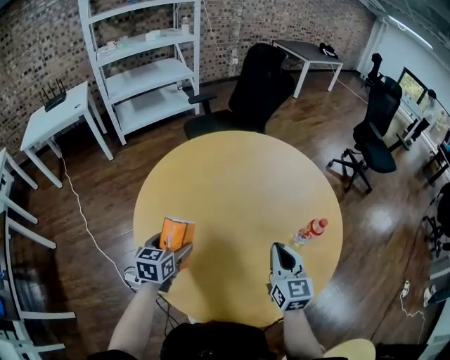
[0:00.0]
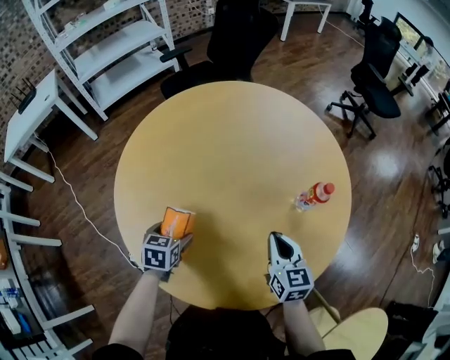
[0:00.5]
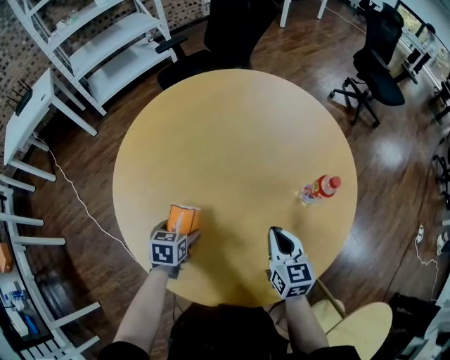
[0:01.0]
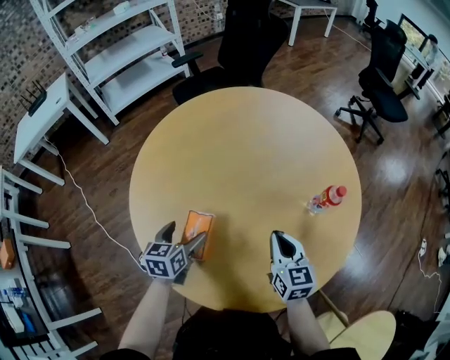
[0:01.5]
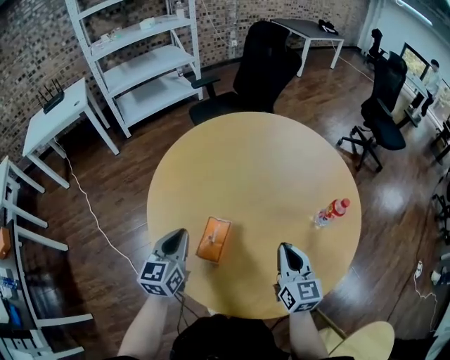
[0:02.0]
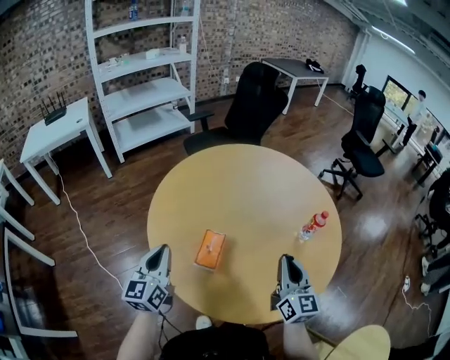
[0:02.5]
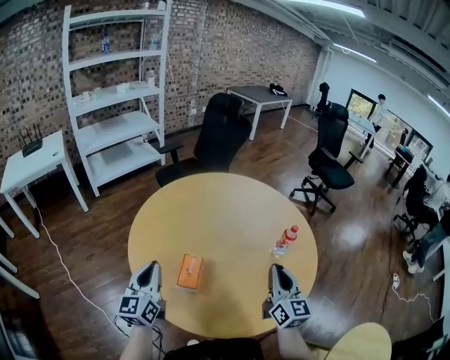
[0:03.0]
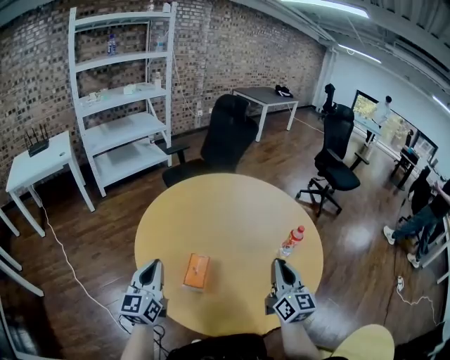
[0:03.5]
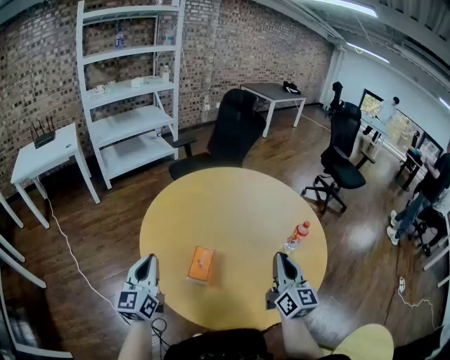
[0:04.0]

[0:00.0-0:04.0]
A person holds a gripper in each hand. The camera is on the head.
0:00.0 to 0:02.0: The left gripper goes downward and returns, about 15 cm each way, and closes. The right gripper reaches roughly 10 cm downward, then returns.
0:02.0 to 0:04.0: The left gripper moves upward, to the left and backward, approximately 10 cm, and changes its angle by approximately 20 degrees. Meanwhile the right gripper heads upward, covering roughly 10 cm, and swivels about 20 degrees.

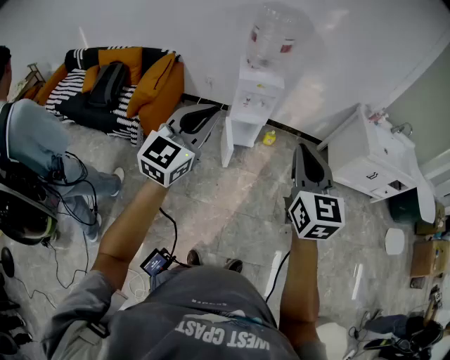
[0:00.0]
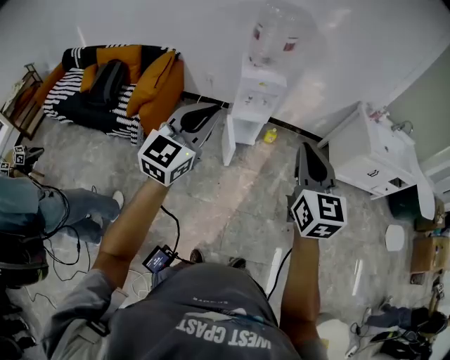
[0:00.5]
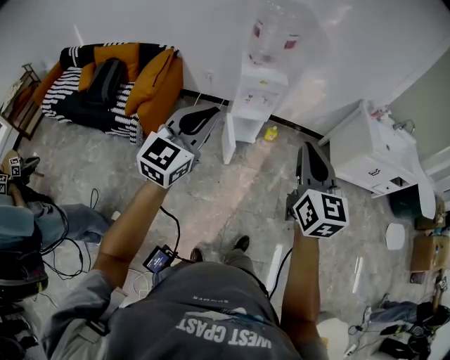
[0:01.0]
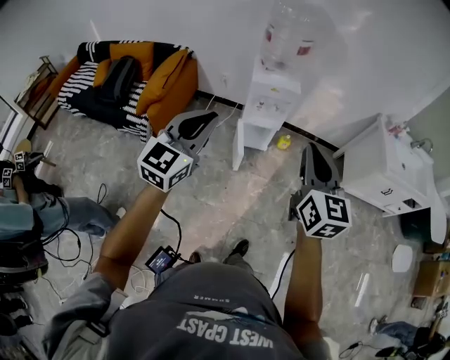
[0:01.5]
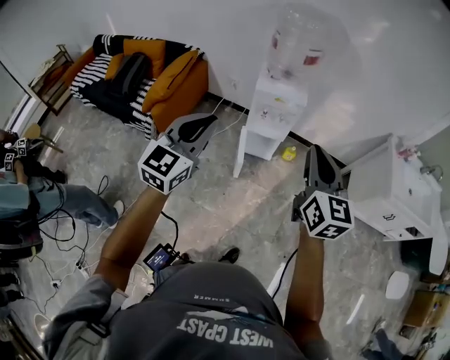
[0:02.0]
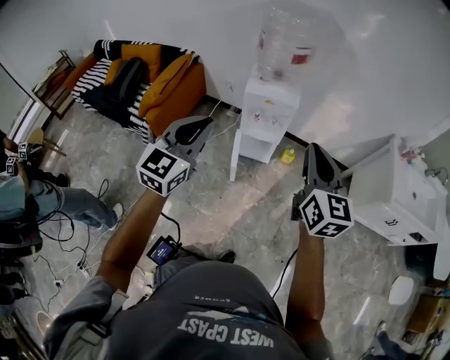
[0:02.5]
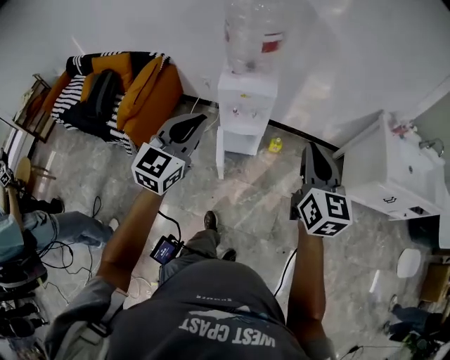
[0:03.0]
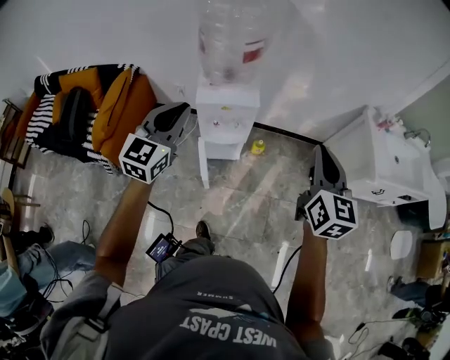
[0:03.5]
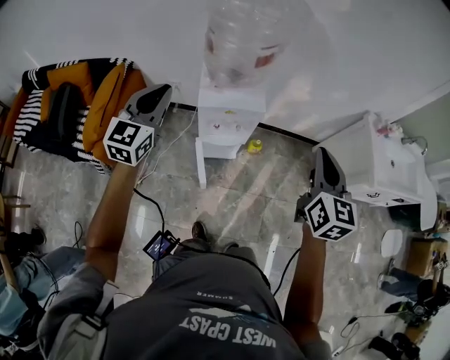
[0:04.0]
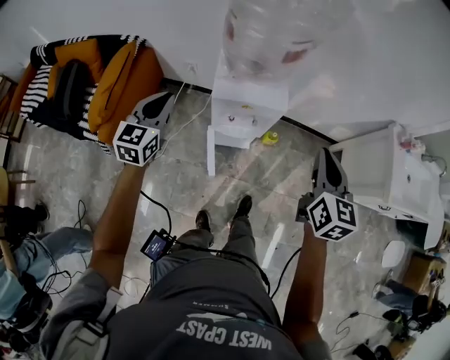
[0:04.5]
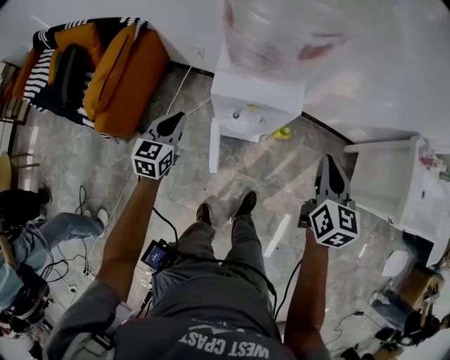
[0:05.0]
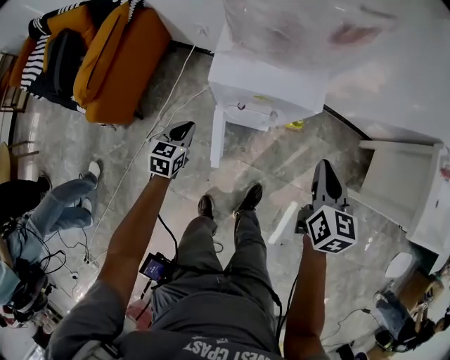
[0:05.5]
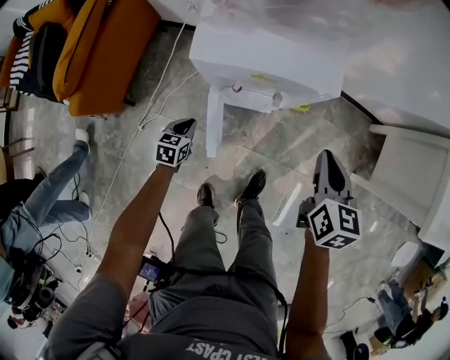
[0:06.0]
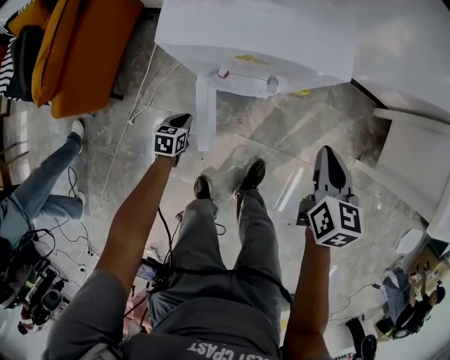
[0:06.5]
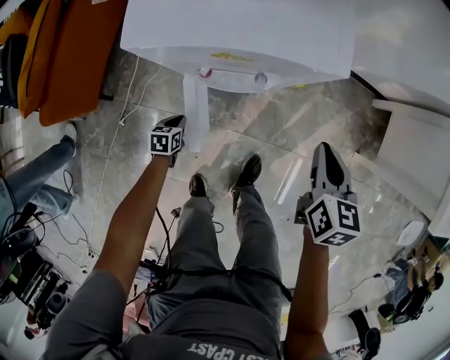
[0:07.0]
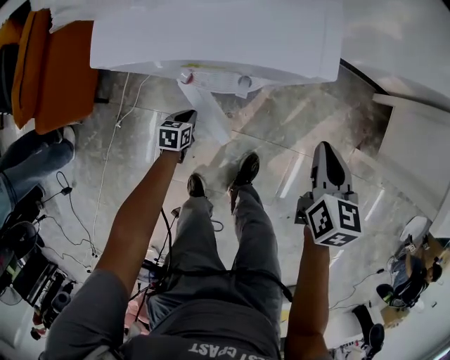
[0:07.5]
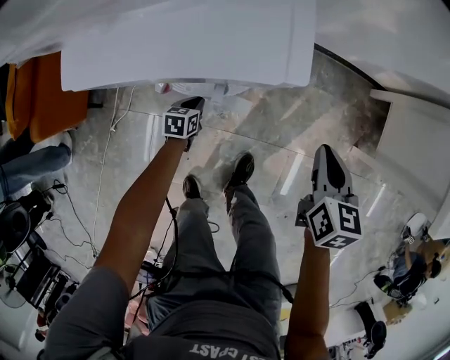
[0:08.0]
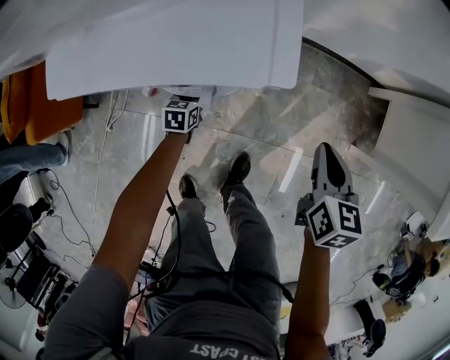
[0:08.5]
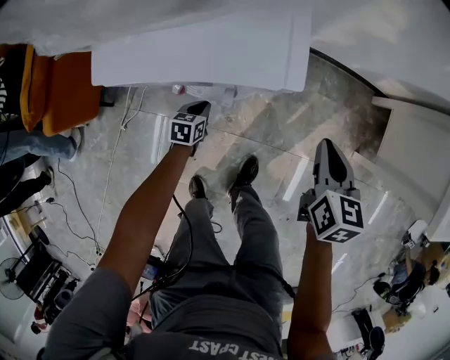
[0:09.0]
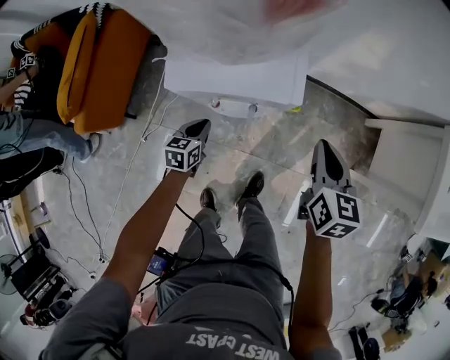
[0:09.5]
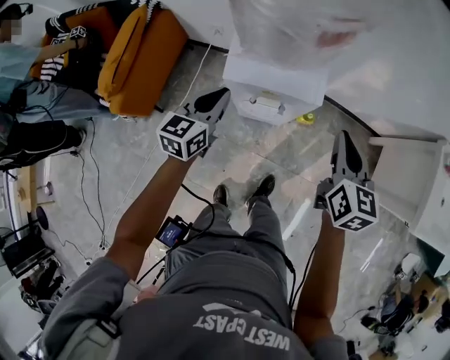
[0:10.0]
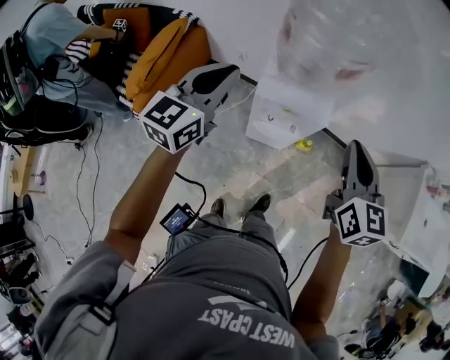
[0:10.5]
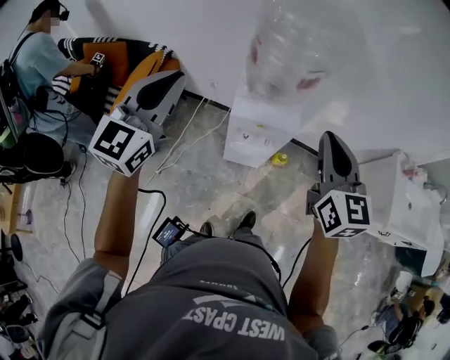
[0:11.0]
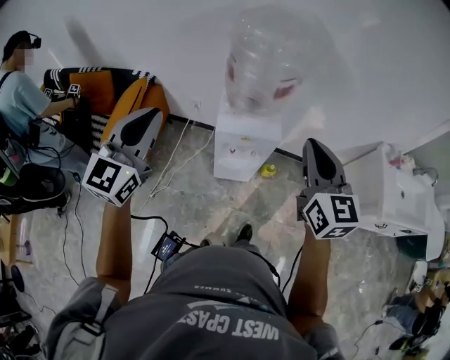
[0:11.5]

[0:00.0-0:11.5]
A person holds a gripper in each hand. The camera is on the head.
0:00.0 to 0:02.0: The right gripper is displaced forward by roughly 20 cm. Meanwhile the left gripper shifts approximately 15 cm forward.
0:02.0 to 0:04.0: The right gripper heads forward, covering about 20 cm, and changes its angle by about 20 degrees; the left gripper travels forward by about 35 cm.
0:04.0 to 0:06.0: The left gripper heads downward, covering some 60 cm, and points its fingers roughly 40 degrees further downward; the right gripper goes approximately 40 cm downward, and changes its angle by some 30 degrees.
0:06.0 to 0:07.5: Both grippers travel together downward and to the right, roughly 15 cm.
0:07.5 to 0:09.5: The left gripper shifts roughly 25 cm upward; the right gripper is displaced upward by roughly 15 cm.
0:09.5 to 0:11.5: The left gripper shifts about 60 cm upward, and angles its fingers upward, by some 50 degrees; the right gripper is displaced upward by approximately 35 cm, and rotates approximately 40 degrees.

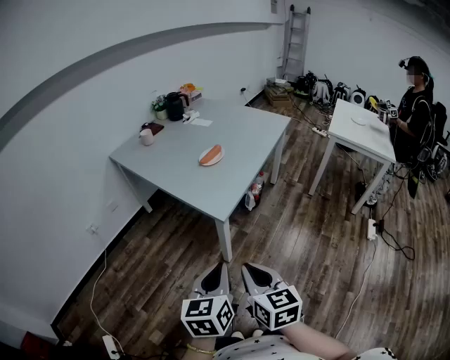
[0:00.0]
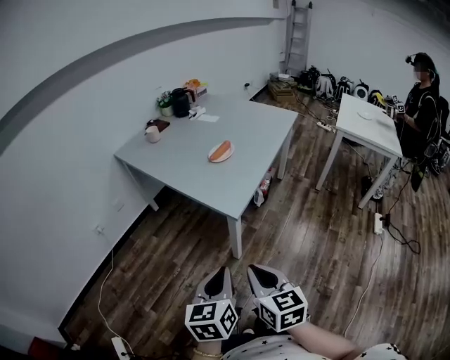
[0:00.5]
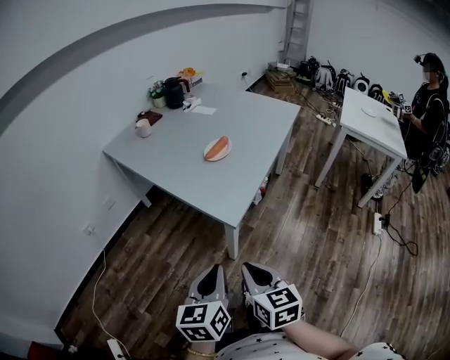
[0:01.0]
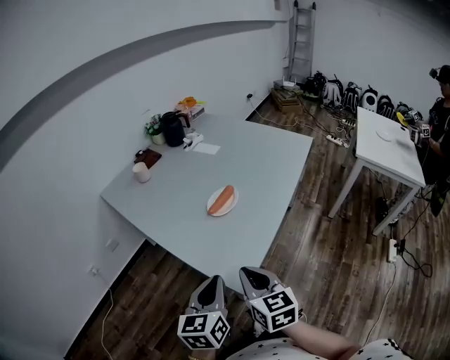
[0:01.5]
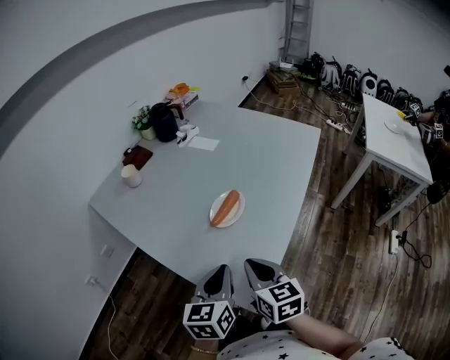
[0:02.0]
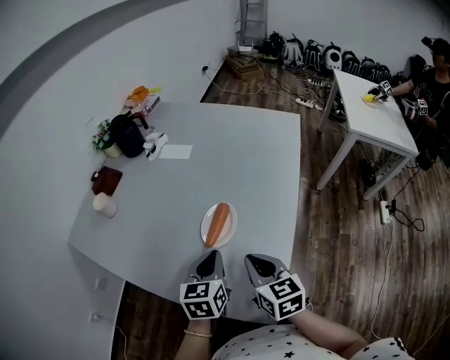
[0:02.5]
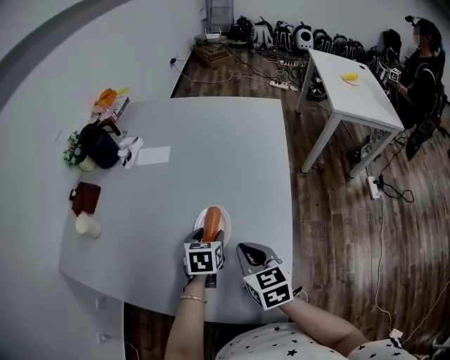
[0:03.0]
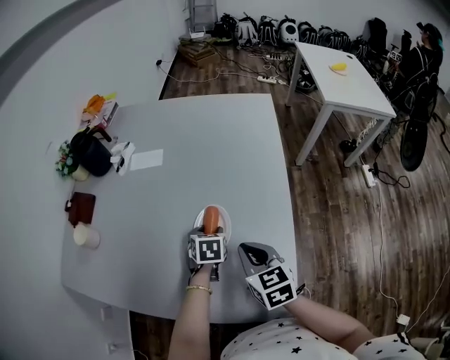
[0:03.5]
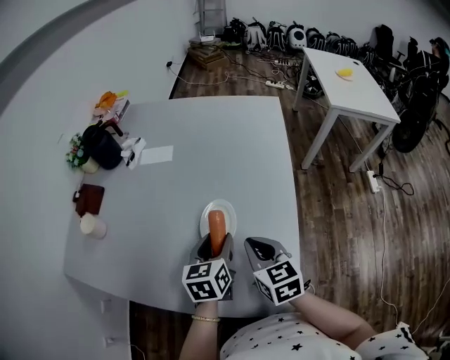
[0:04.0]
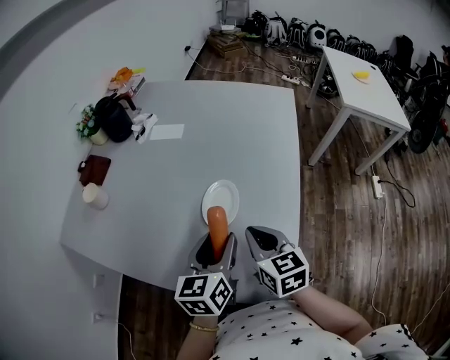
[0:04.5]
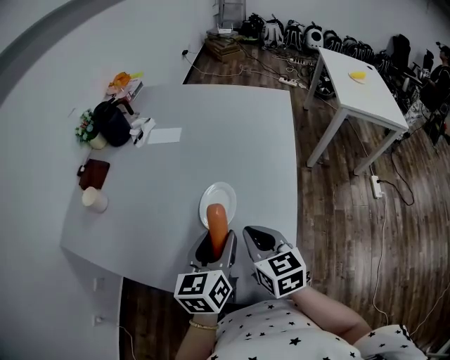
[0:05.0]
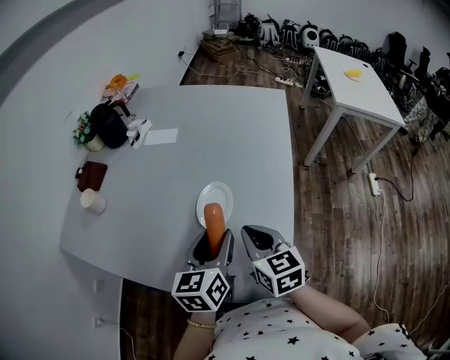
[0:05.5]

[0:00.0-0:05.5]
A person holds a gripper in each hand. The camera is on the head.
0:00.0 to 0:02.0: Both grippers are carried forward, roughly 40 cm.
0:02.0 to 0:03.5: The right gripper is displaced forward and downward by roughly 15 cm, and changes its angle by some 20 degrees. The left gripper moves forward and downward, some 35 cm, points its fingers about 30 degrees further downward, and opens its fingers.
0:03.5 to 0:05.5: The right gripper ends up roughly 5 cm from where it was. The left gripper travels upward and backward by about 20 cm, and tips its fingers upward by some 40 degrees.

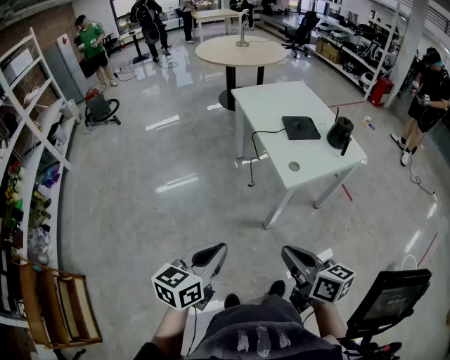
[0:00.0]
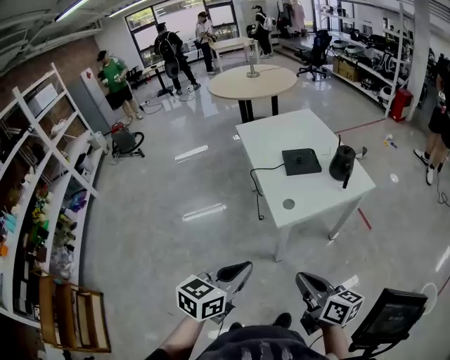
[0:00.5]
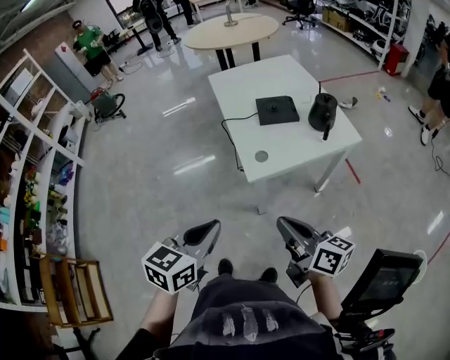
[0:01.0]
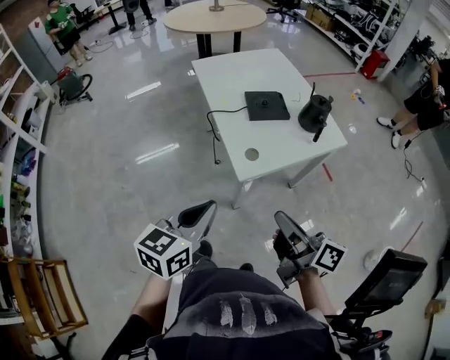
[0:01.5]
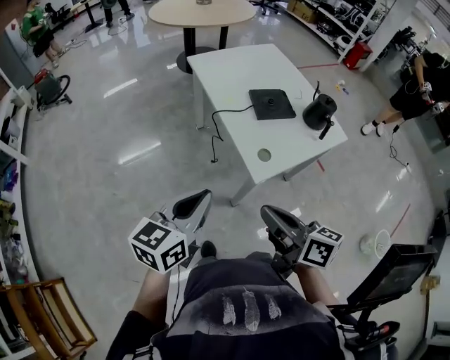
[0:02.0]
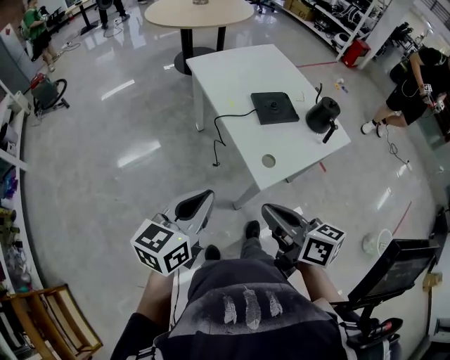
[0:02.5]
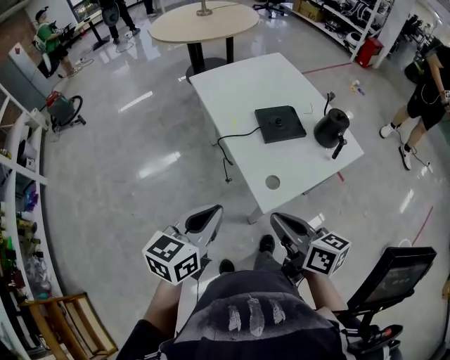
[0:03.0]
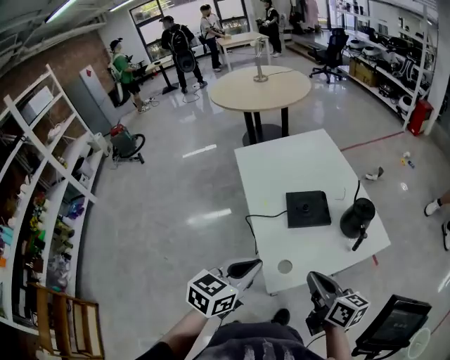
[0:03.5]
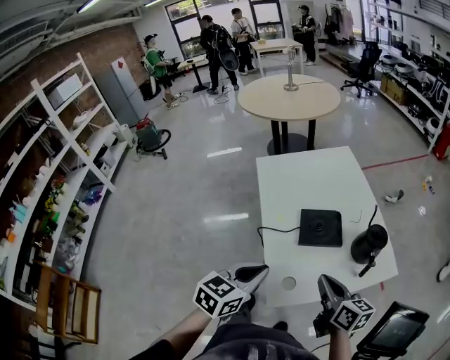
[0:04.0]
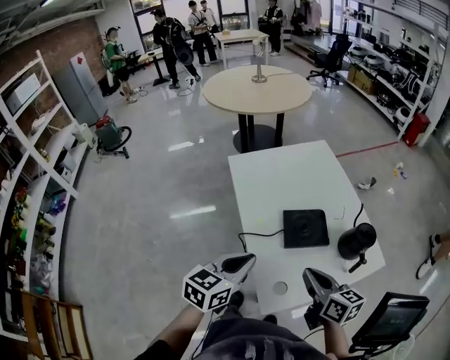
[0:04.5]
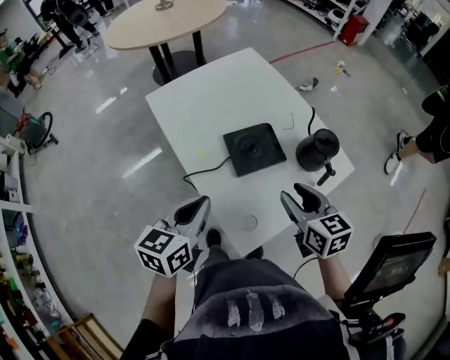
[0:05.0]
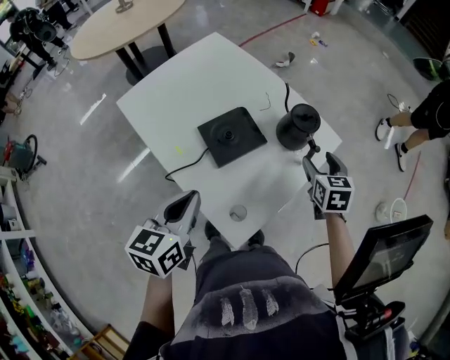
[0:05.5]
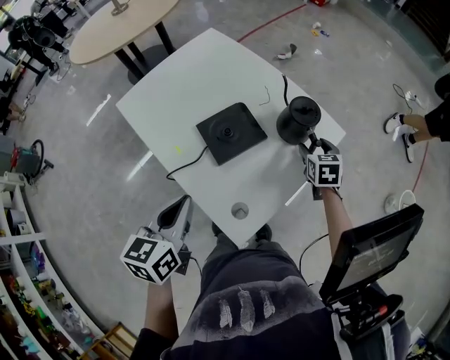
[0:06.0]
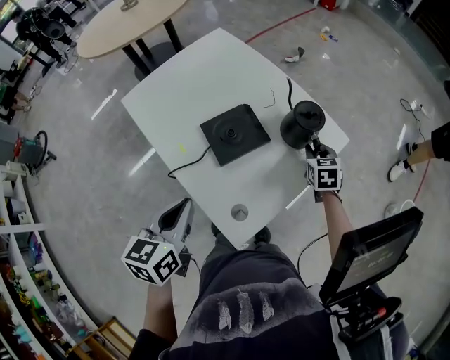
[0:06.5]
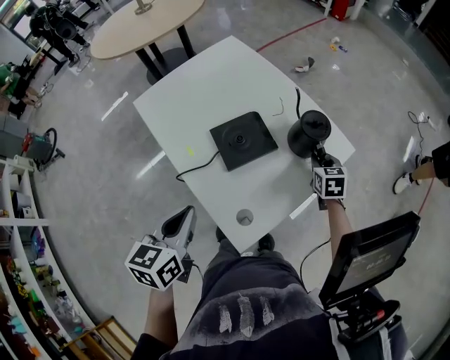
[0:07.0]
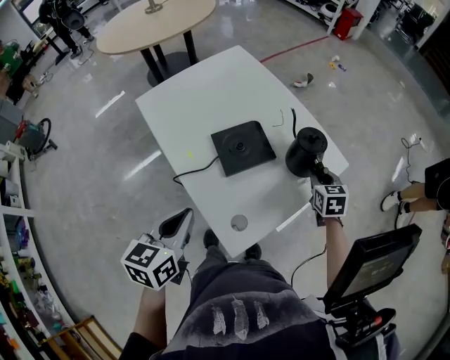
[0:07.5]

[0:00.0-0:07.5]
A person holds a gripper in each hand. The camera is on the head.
0:00.0 to 0:02.0: The left gripper shifts roughly 20 cm forward and to the right; the right gripper heads forward, covering about 15 cm, and reaches approximately 20 cm to the right, then returns.
0:02.0 to 0:04.0: Both grippers travel together forward and to the right, roughly 30 cm.
0:04.0 to 0:05.5: The left gripper shifts by roughly 10 cm. Meanwhile the right gripper shifts by approximately 20 cm, rotates some 60 degrees, and opens.
0:05.5 to 0:07.5: The right gripper ends up approximately 5 cm from where it was, and closes; the left gripper ends up some 5 cm from where it was.
